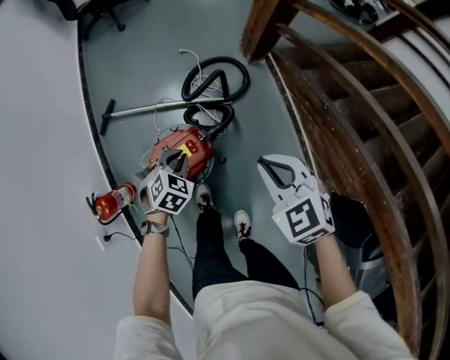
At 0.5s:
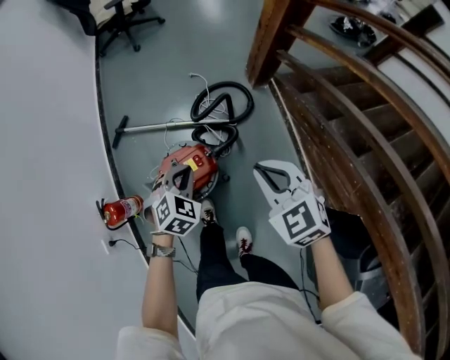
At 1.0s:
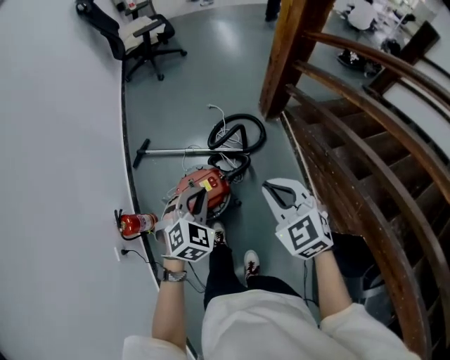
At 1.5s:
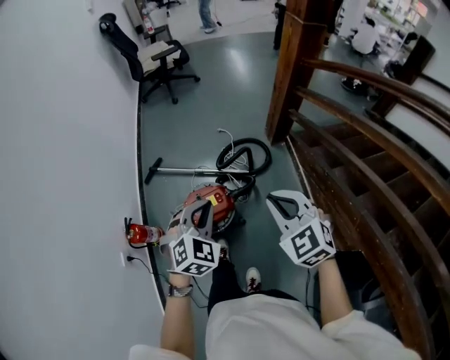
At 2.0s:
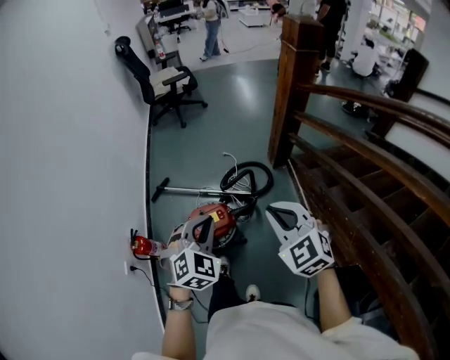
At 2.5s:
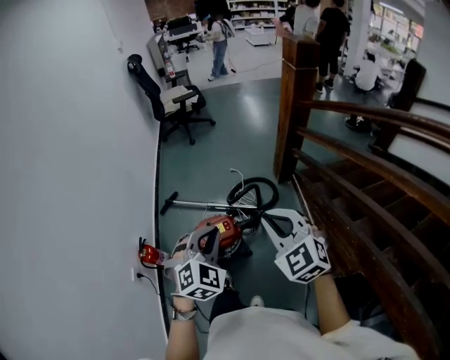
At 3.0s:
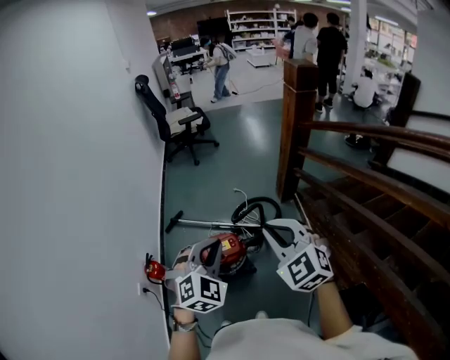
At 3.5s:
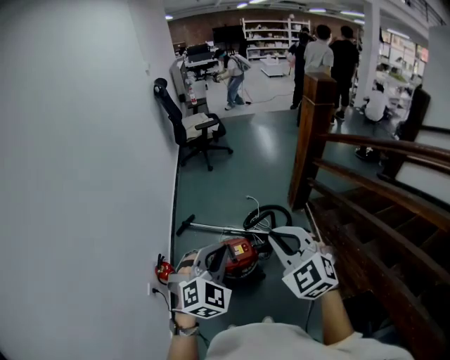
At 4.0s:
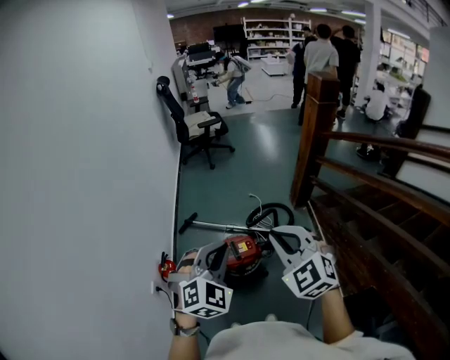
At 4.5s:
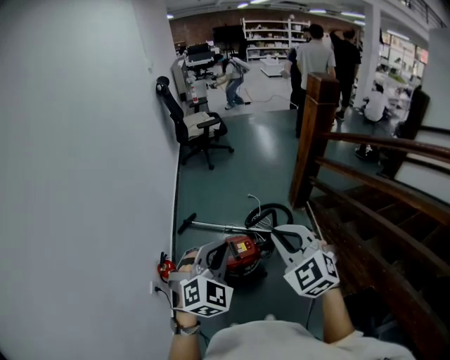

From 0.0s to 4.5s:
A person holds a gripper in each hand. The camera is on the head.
From 0.0s to 2.0s: The right gripper is displaced upward and backward by about 25 cm, and changes its angle by some 20 degrees. The left gripper heads upward and backward, covering some 40 cm, and turns by some 30 degrees.
From 2.0s to 4.5s: The right gripper is displaced to the left, upward and backward by roughly 20 cm. The left gripper is displaced upward, to the left and backward by about 20 cm.

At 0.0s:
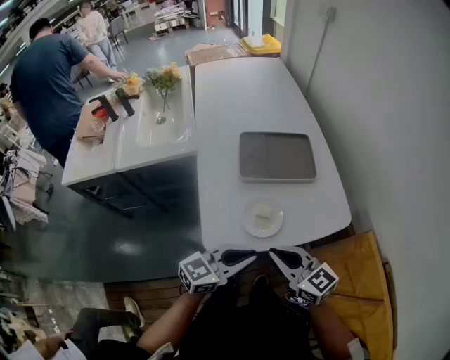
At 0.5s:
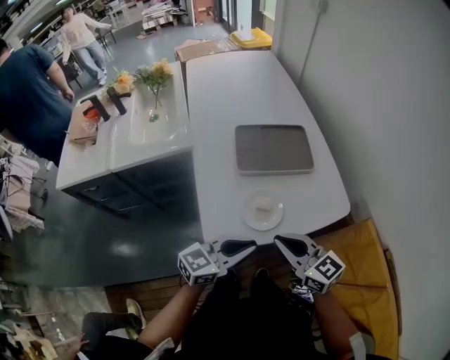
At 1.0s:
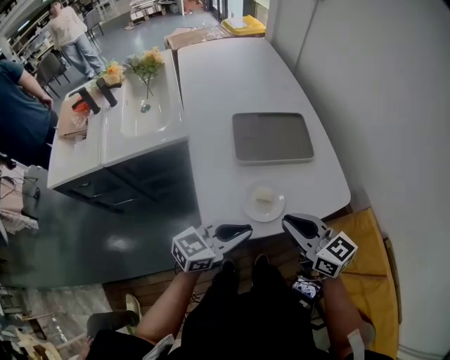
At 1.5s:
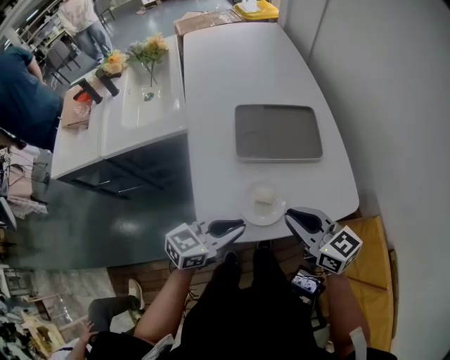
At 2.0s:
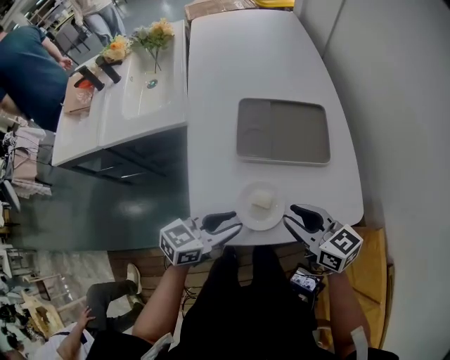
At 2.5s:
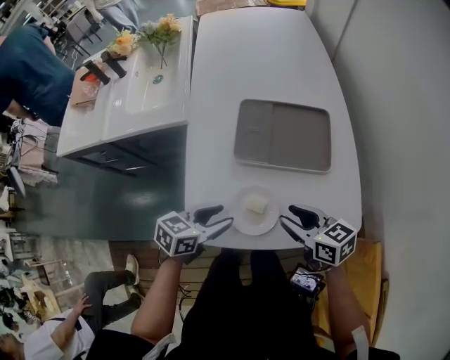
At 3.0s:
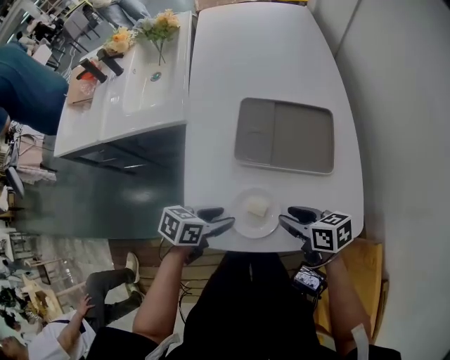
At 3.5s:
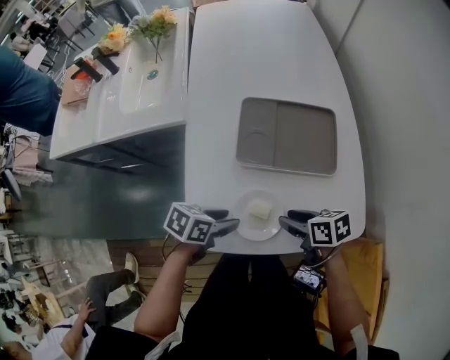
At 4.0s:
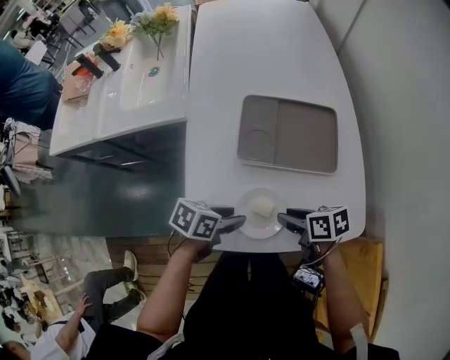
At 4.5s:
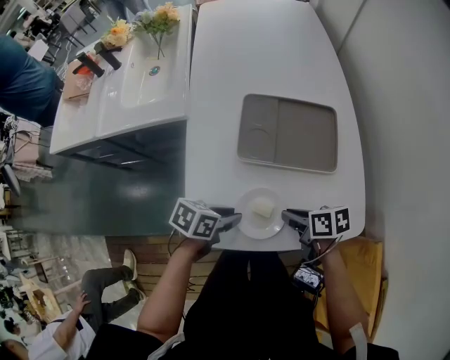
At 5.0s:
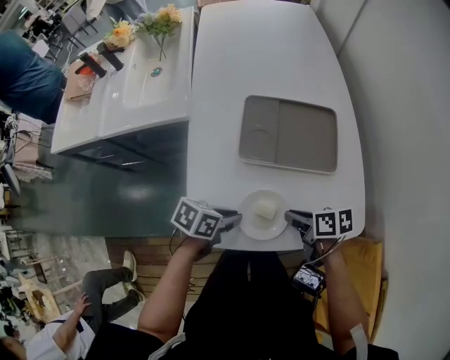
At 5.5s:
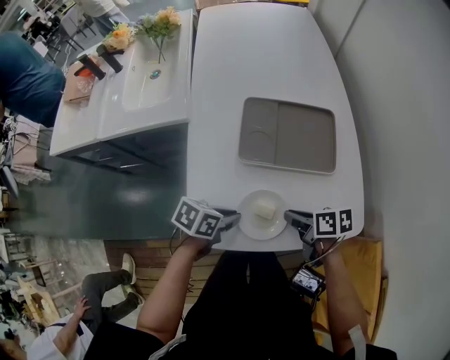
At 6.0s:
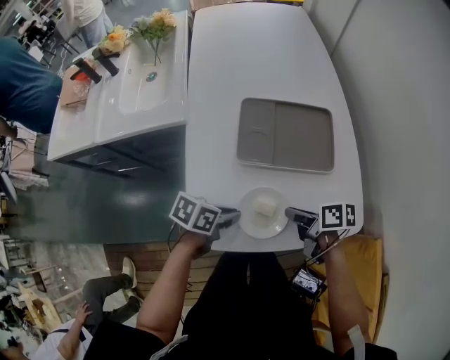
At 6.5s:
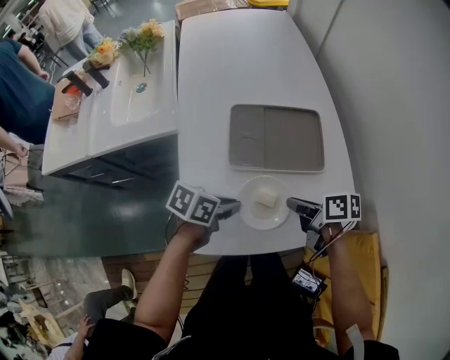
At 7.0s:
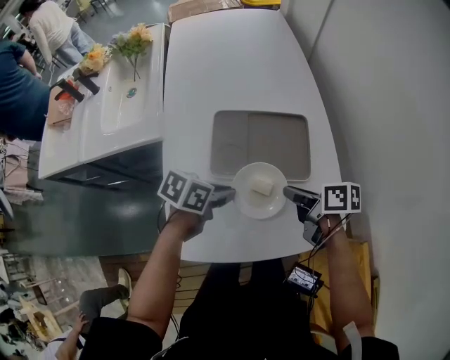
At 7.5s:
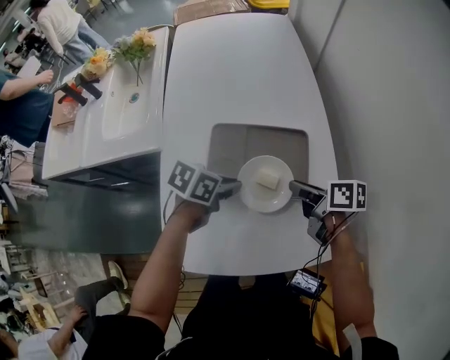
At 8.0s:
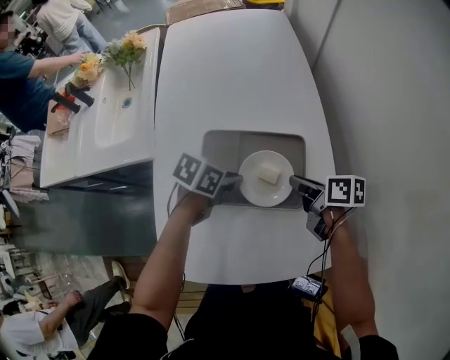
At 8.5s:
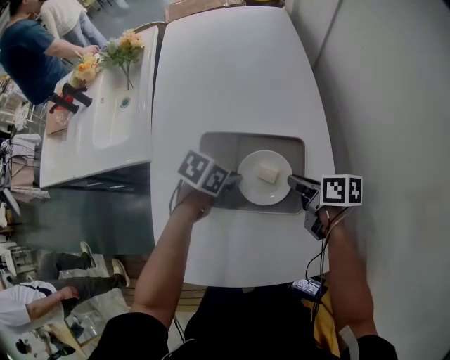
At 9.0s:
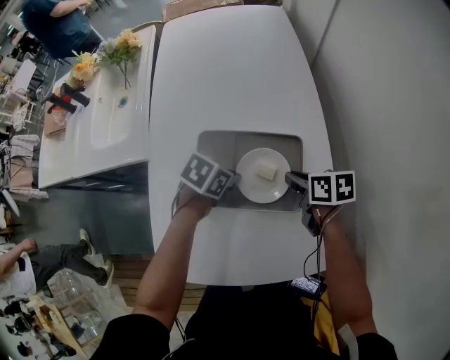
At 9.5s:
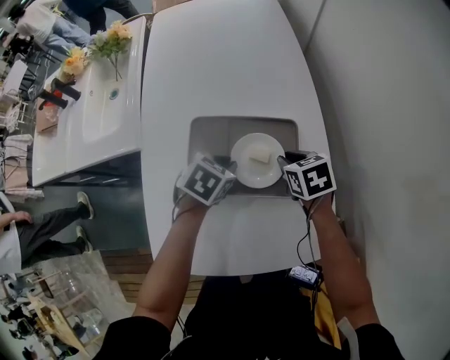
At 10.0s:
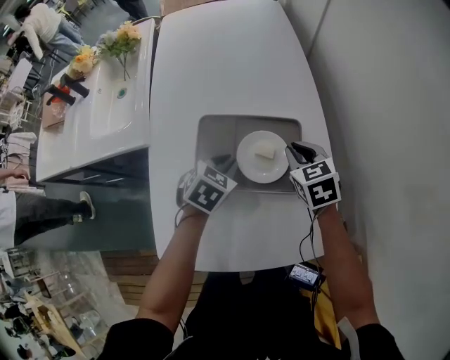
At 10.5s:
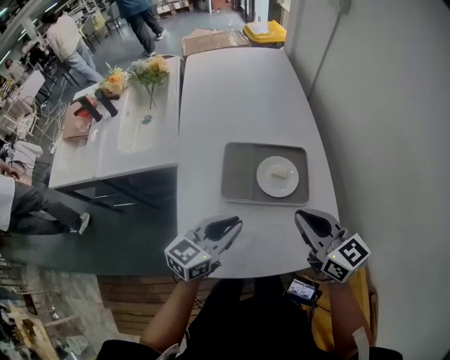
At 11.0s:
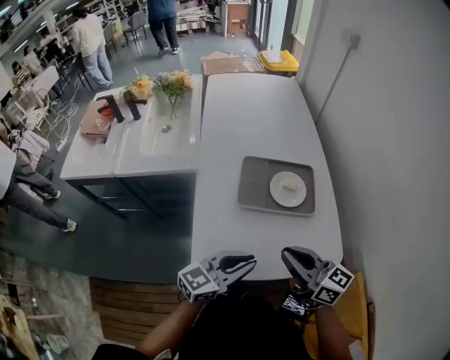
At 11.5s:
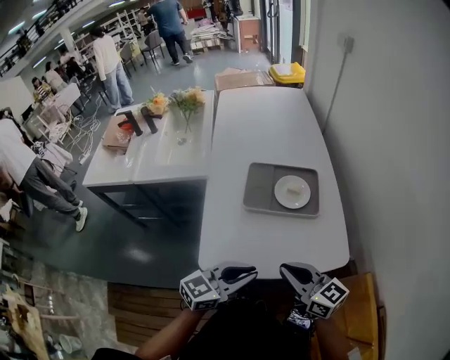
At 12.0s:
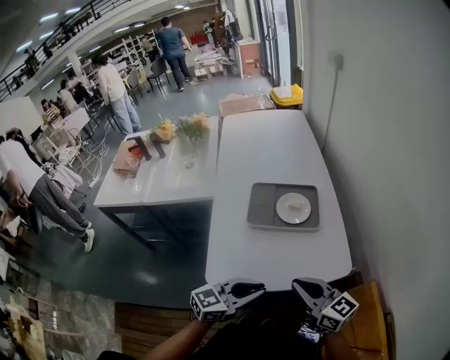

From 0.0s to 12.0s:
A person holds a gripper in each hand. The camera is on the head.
From 0.0s to 2.0s: Both grippers travel together forward and downward, roughly 15 cm. The right gripper opens up. Meanwhile the left gripper opens.
From 2.0s to 4.0s: Both grippers travel together downward, approximately 10 cm. The left gripper rotates approximately 40 degrees; the right gripper changes its angle by roughly 40 degrees.
From 4.0s to 6.0s: The left gripper closes up, while the right gripper closes.
From 6.0s to 8.0s: The left gripper changes place by approximately 25 cm, while the right gripper moves approximately 25 cm.
From 8.0s to 10.0s: The left gripper changes its angle by approximately 40 degrees. Meanwhile the right gripper rolls counterclockwise, seen from behind, by approximately 50 degrees.
From 10.0s to 12.0s: The right gripper is displaced backward by some 40 cm, and tilts its fingers approximately 40 degrees upward. Meanwhile the left gripper heads backward and upward, covering roughly 40 cm, and tips its fingers upward by roughly 40 degrees.

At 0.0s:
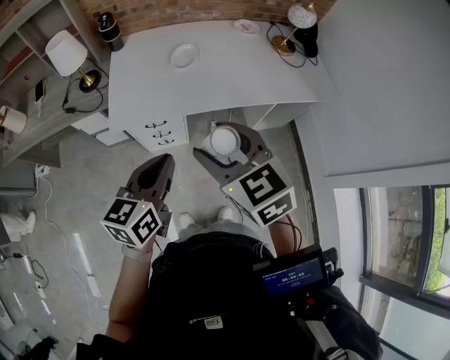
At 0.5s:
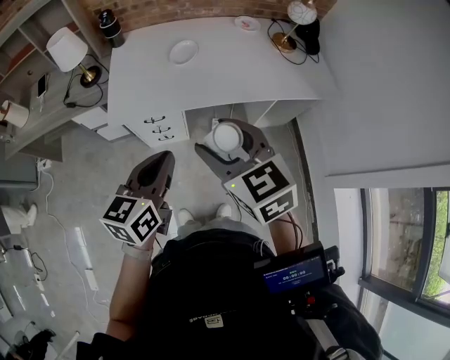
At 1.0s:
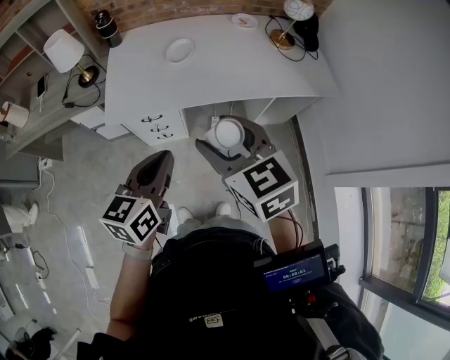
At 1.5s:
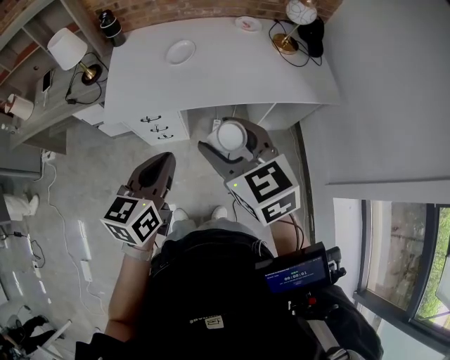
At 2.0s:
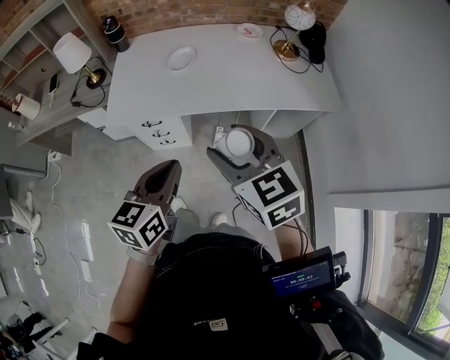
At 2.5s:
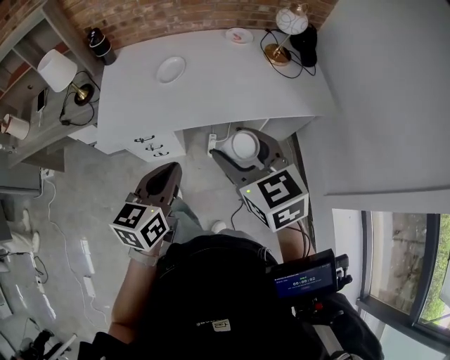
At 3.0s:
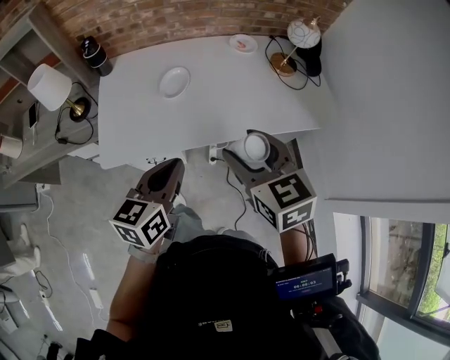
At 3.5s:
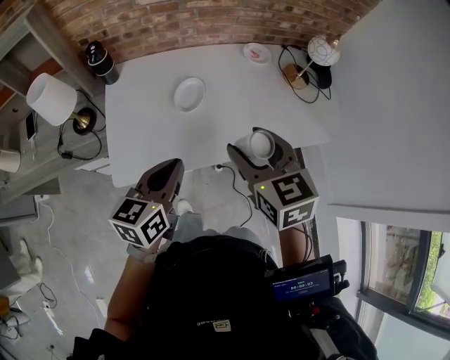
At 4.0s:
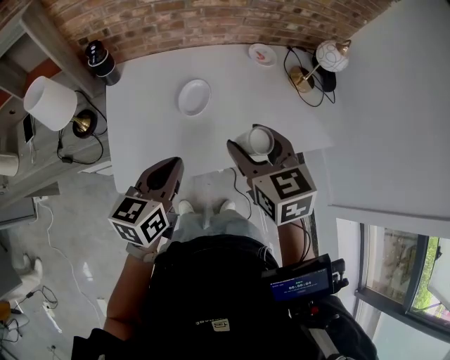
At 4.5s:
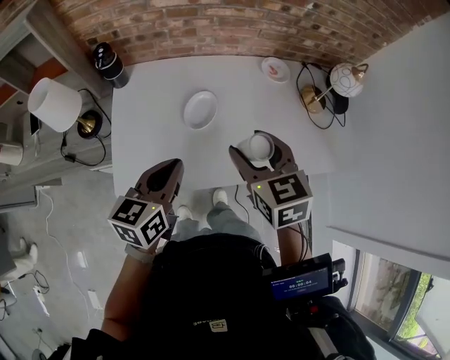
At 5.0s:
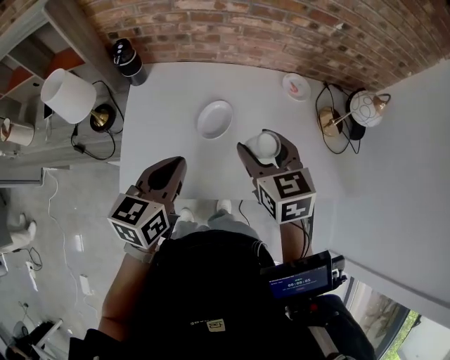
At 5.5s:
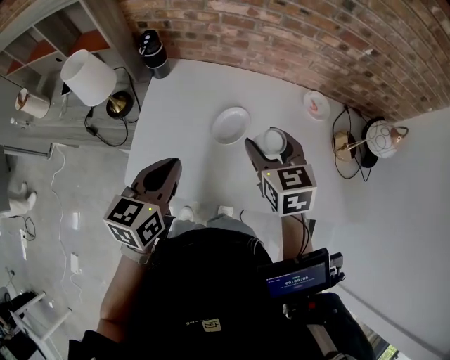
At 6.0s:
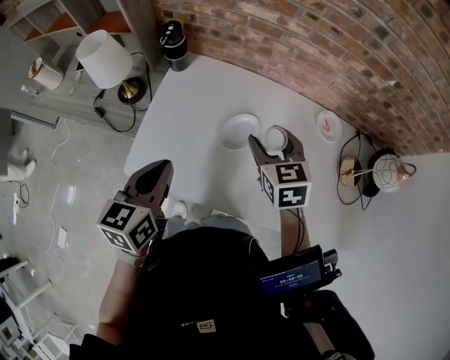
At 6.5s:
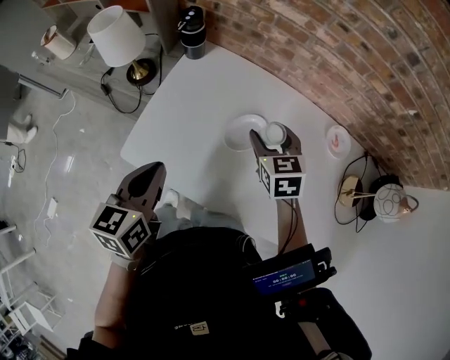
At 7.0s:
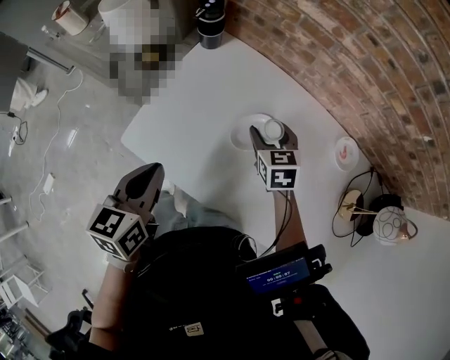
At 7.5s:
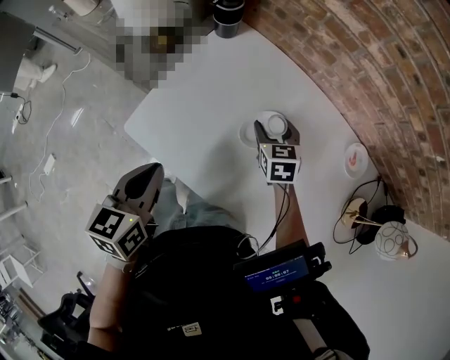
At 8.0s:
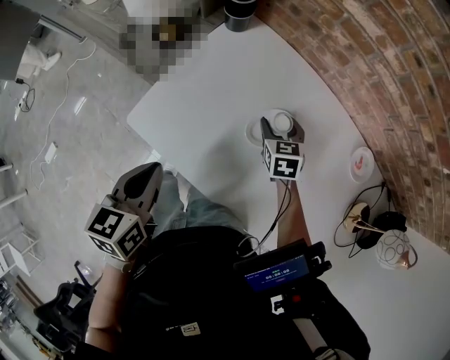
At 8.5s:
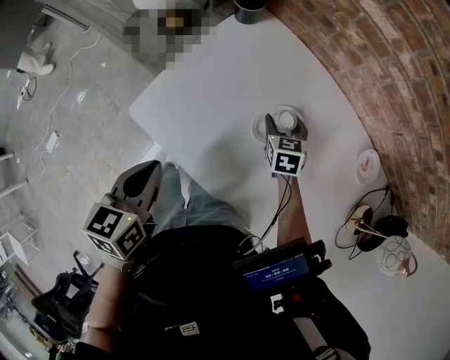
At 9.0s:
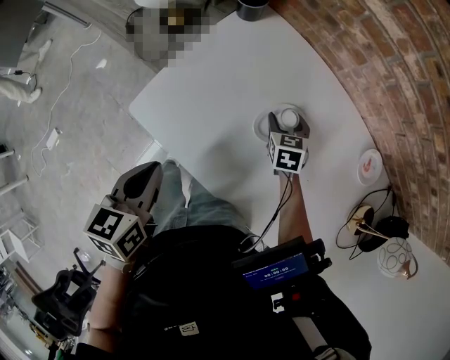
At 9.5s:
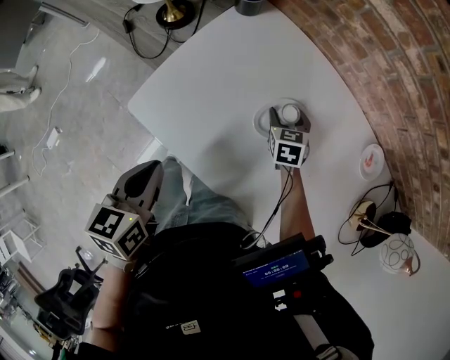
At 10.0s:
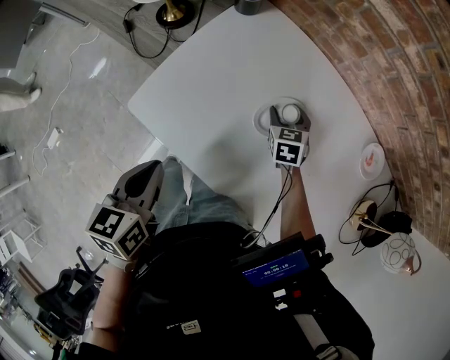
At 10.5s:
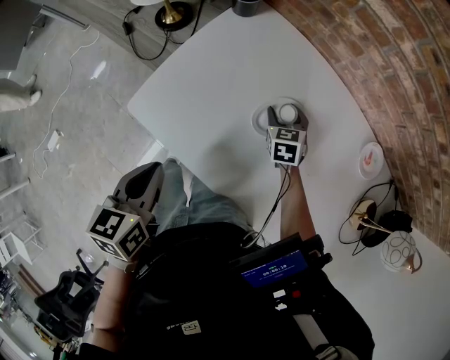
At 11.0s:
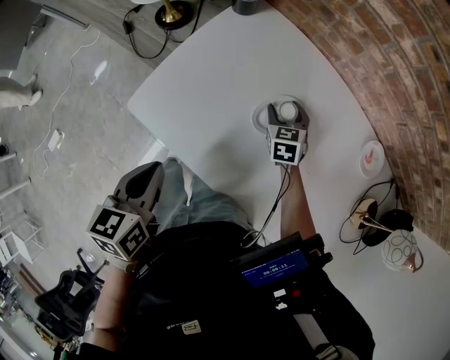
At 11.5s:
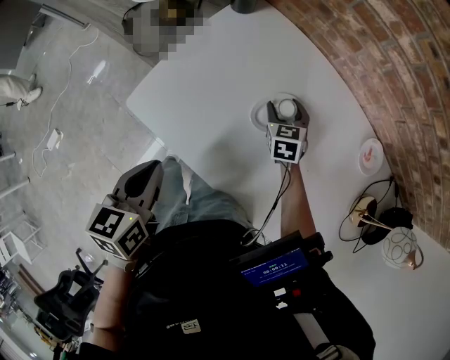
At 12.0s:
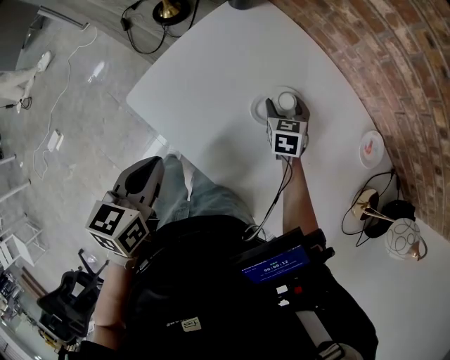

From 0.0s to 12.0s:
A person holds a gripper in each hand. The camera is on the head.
From 0.0s to 2.0s: The two grippers go roughly 15 cm to the right.
From 2.0s to 4.0s: The two grippers go about 30 cm forward and to the left.
From 4.0s to 6.0s: The right gripper ends up some 20 cm from where it was, and swivels about 20 degrees, while the left gripper moves about 10 cm, and changes its angle by some 30 degrees.
From 6.0s to 8.0s: The left gripper goes roughly 10 cm downward, and rotates roughly 20 degrees; the right gripper is displaced downward and forward by some 20 cm.
From 8.0s to 10.0s: The right gripper shifts roughly 5 cm downward.
From 10.0s to 12.0s: The grippers move only a little.
